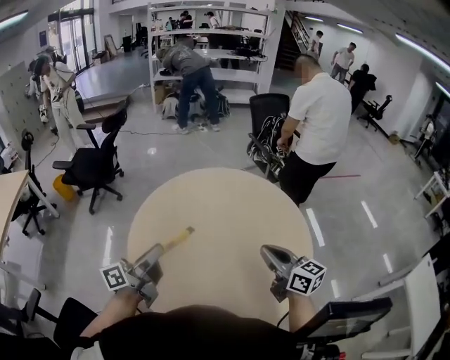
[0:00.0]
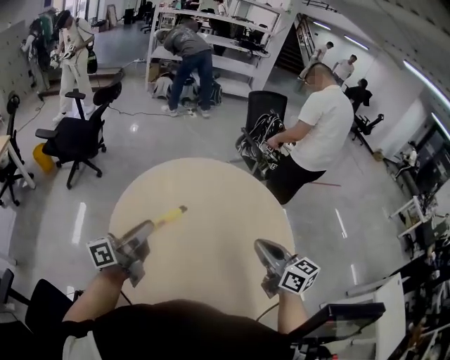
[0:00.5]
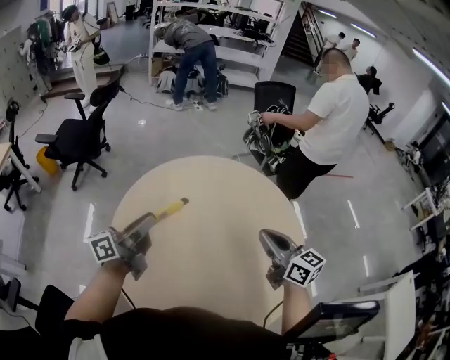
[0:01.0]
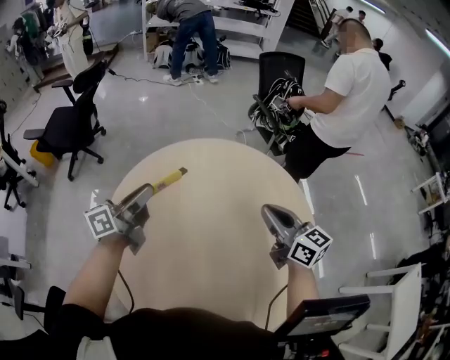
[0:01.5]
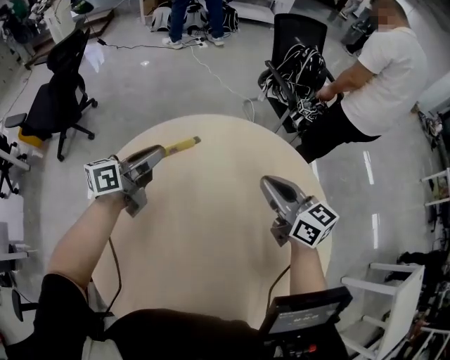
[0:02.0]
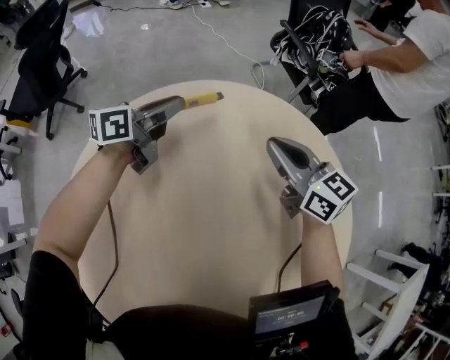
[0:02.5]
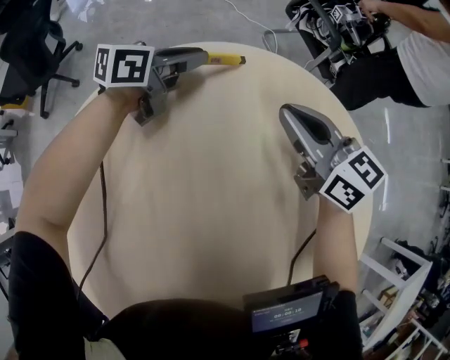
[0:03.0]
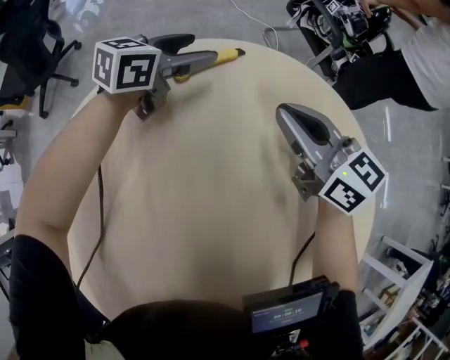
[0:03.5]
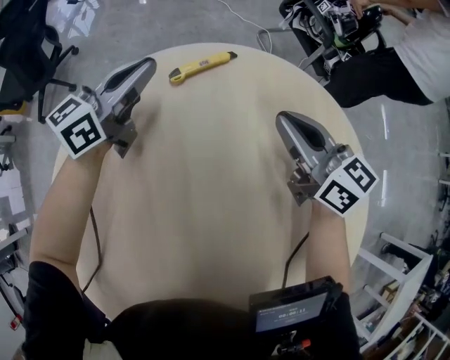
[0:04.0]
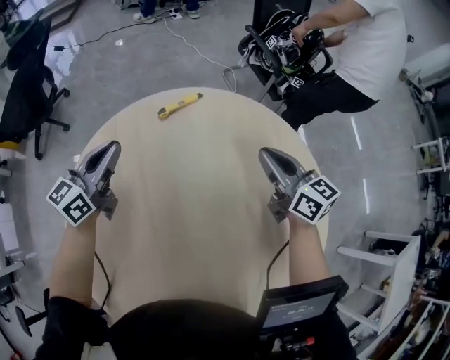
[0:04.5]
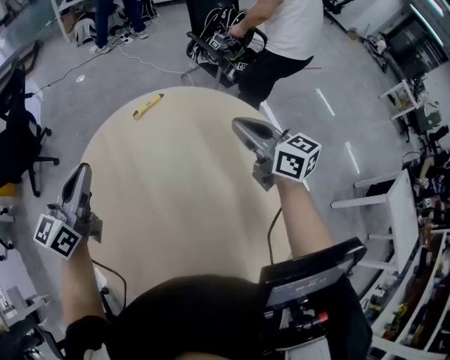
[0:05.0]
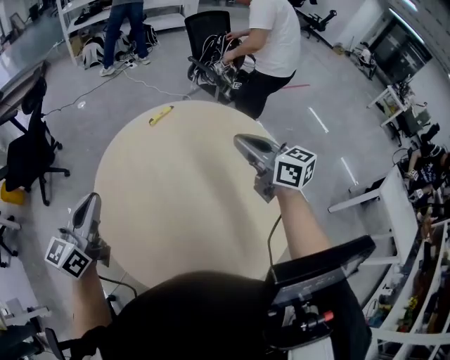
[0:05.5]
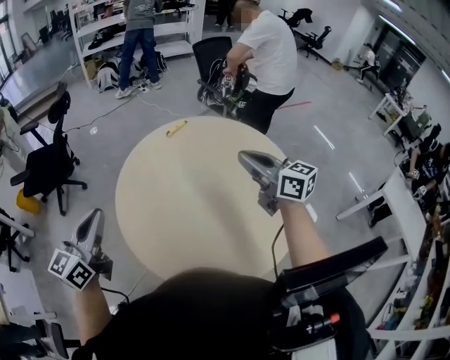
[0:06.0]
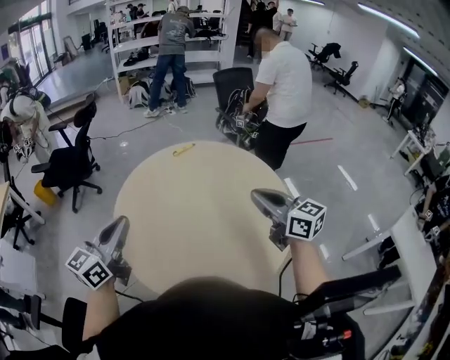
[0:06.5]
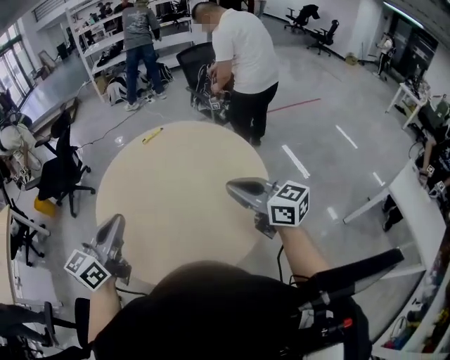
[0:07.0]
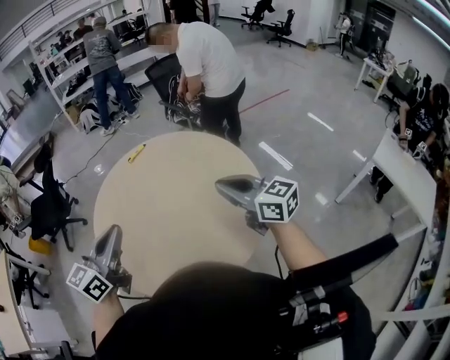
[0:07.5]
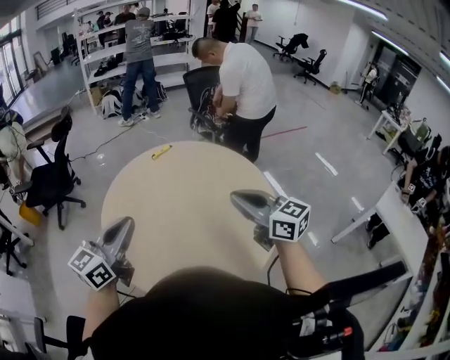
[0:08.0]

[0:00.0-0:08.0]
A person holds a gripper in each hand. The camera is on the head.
0:00.0 to 0:02.0: Both grippers travel together forward and downward, roughly 40 cm. The left gripper turns by roughly 20 degrees.
0:02.0 to 0:04.0: The left gripper goes roughly 15 cm forward and downward, changes its angle by roughly 20 degrees, and opens and closes again. The right gripper goes roughly 15 cm downward and forward.
0:04.0 to 0:06.0: Both grippers are carried backward, approximately 50 cm. The two grippers go some 35 cm upward.
0:06.0 to 0:08.0: The left gripper moves to the right and backward, roughly 20 cm. The right gripper goes roughly 15 cm backward and to the right.

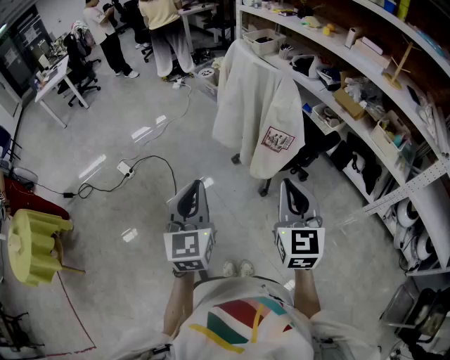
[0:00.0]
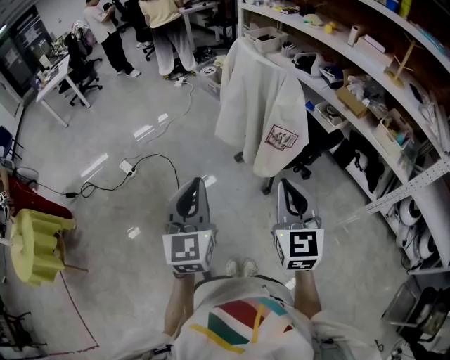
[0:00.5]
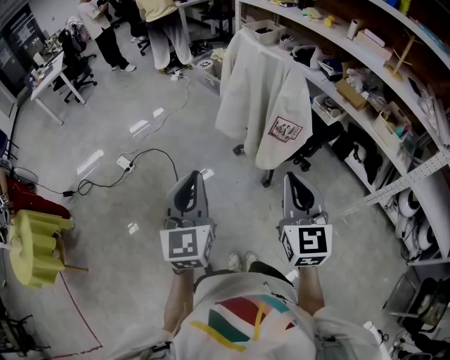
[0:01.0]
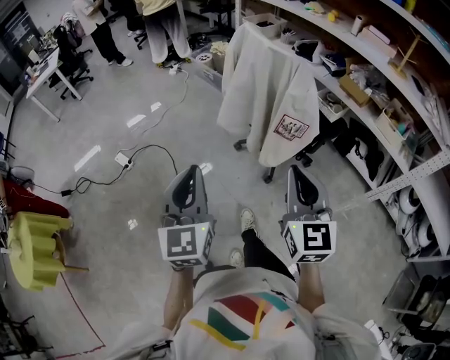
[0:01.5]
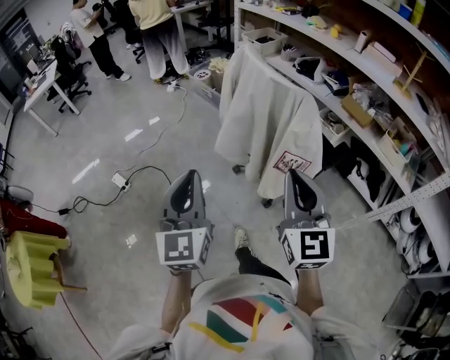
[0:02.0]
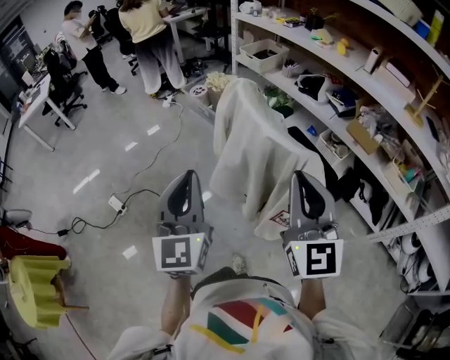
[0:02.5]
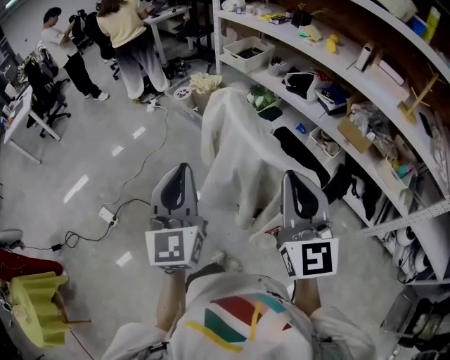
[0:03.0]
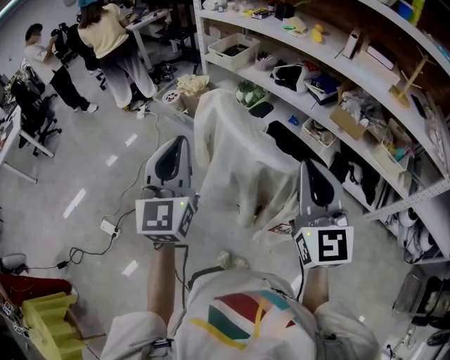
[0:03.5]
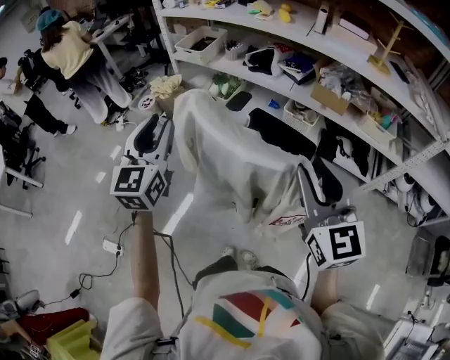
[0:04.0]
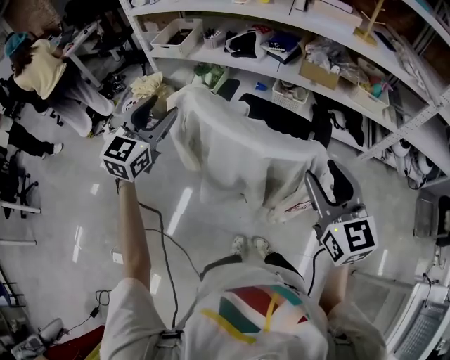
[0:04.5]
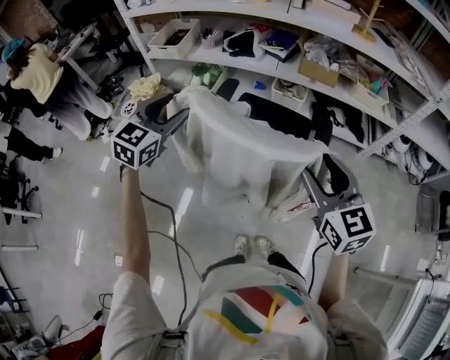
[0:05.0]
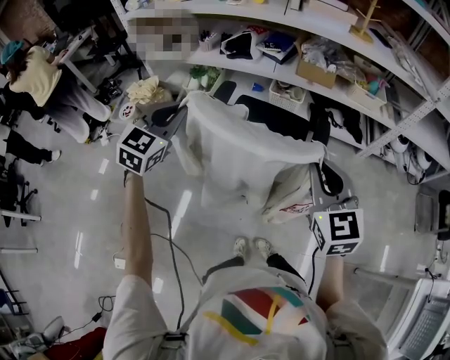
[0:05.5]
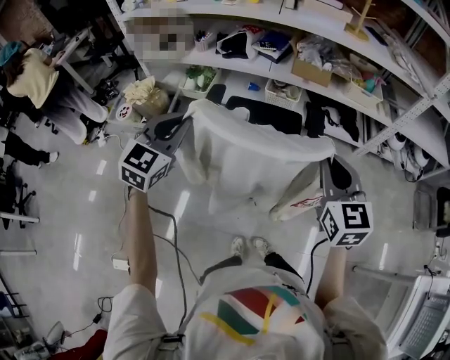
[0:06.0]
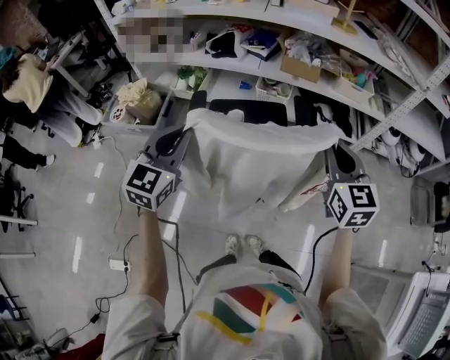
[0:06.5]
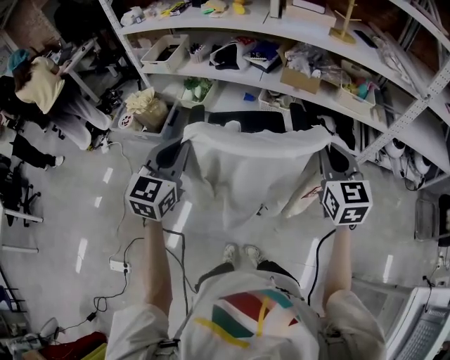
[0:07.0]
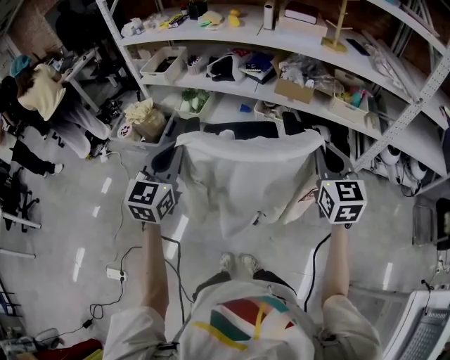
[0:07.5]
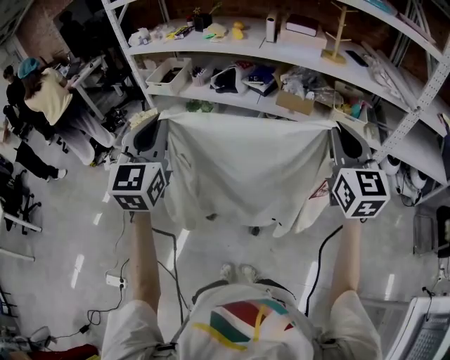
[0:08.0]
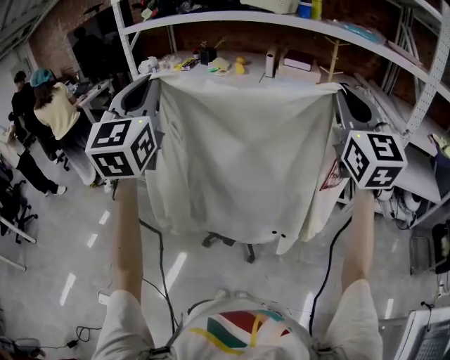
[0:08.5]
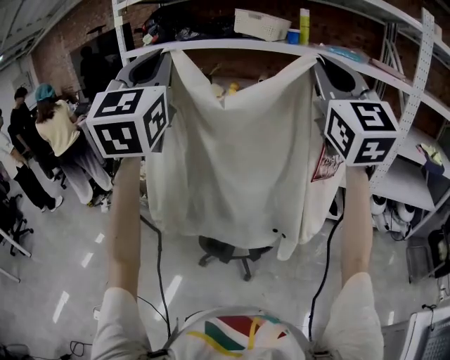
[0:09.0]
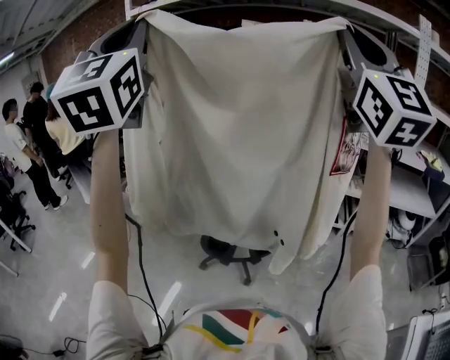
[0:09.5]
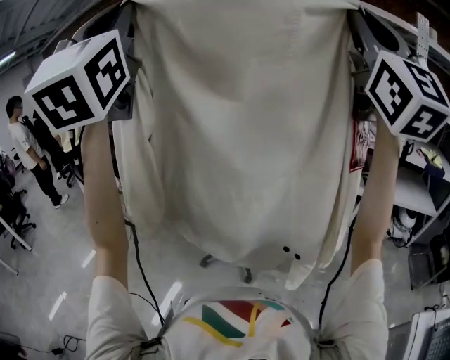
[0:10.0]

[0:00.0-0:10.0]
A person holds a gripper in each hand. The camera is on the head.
0:00.0 to 0:02.0: Both grippers move forward, some 15 cm.
0:02.0 to 0:04.0: The right gripper is displaced forward by some 20 cm, and opens; the left gripper moves forward, some 40 cm, rotates roughly 30 degrees, and opens its fingers.
0:04.0 to 0:06.0: The right gripper heads downward, covering about 5 cm, swivels roughly 20 degrees, and closes up; the left gripper ends up about 10 cm from where it was, changes its angle by about 40 degrees, and closes up.
0:06.0 to 0:08.0: The left gripper shifts approximately 15 cm upward and to the right, and changes its angle by about 30 degrees; the right gripper heads upward, to the right and forward, covering some 20 cm.
0:08.0 to 0:10.0: The grippers both shift upward and backward by approximately 40 cm. The left gripper tilts its fingers approximately 30 degrees upward, while the right gripper tilts its fingers roughly 40 degrees upward.

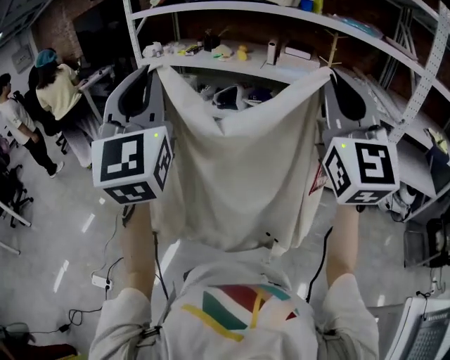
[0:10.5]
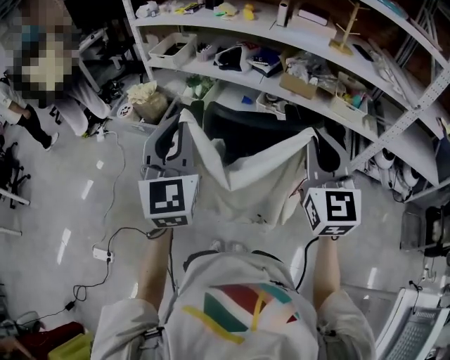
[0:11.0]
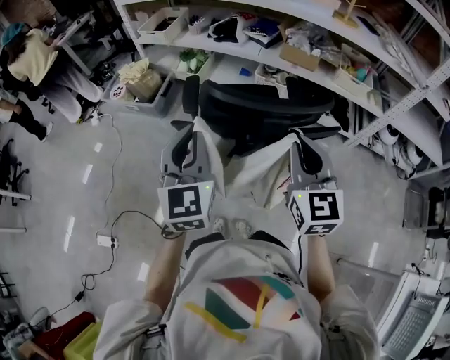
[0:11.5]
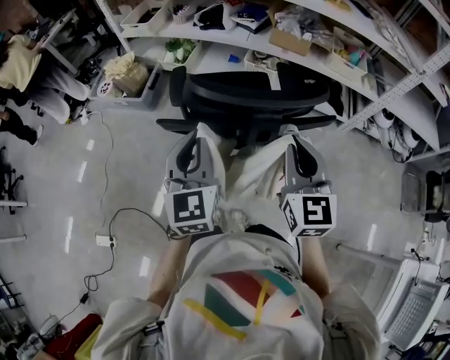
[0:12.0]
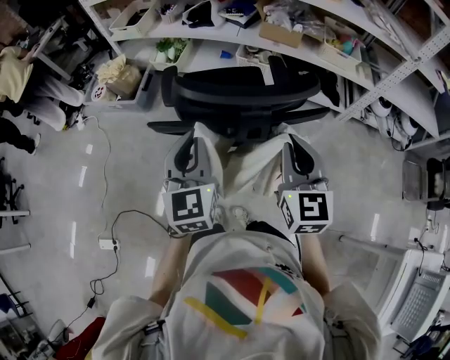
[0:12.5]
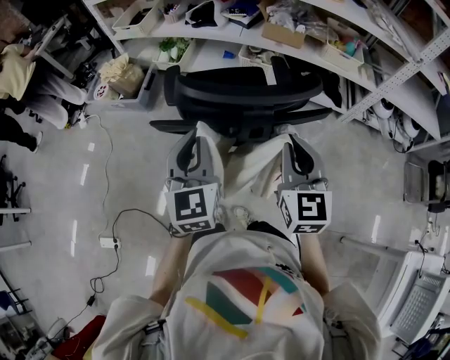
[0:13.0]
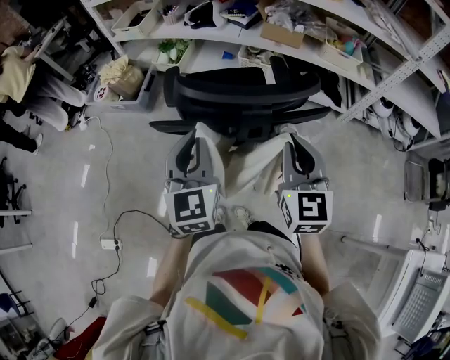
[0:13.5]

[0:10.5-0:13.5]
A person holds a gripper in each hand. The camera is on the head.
0:10.5 to 0:12.0: The two grippers go about 35 cm downward. The right gripper angles its fingers downward, by approximately 30 degrees; the left gripper changes its angle by about 30 degrees.
0:12.0 to 0:13.5: There are only small adjustments of the grippers.

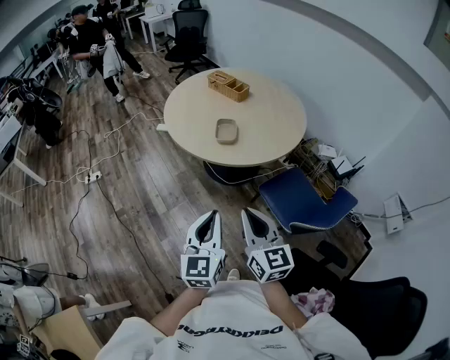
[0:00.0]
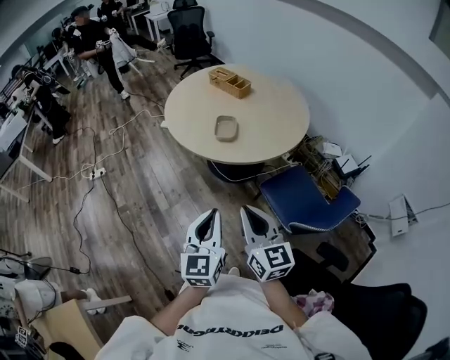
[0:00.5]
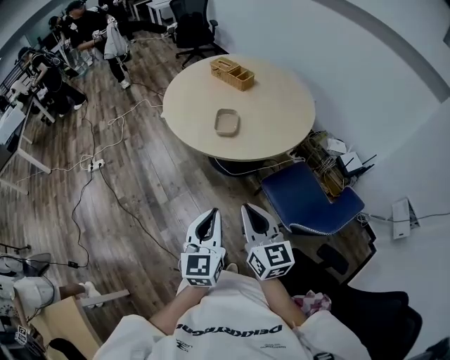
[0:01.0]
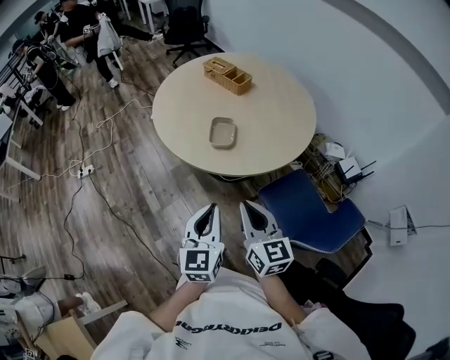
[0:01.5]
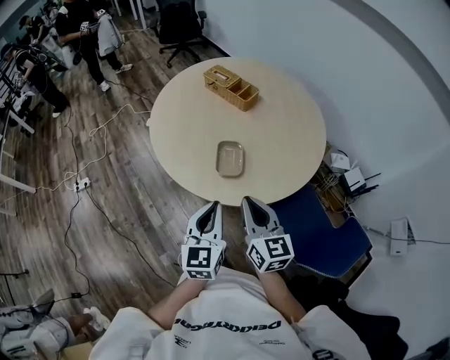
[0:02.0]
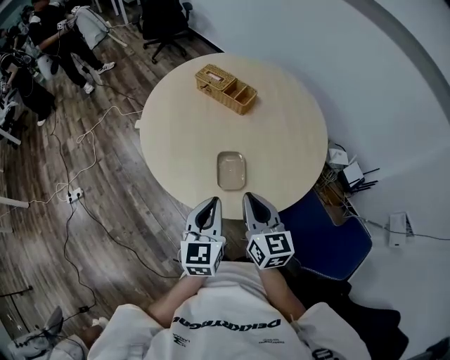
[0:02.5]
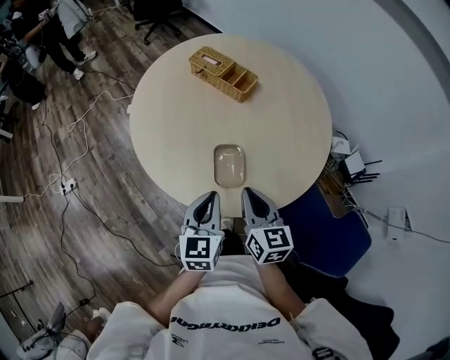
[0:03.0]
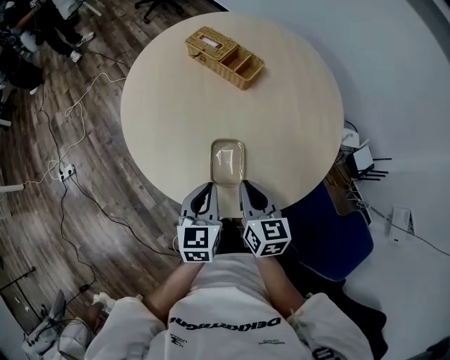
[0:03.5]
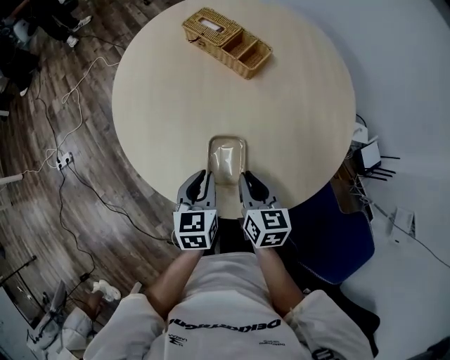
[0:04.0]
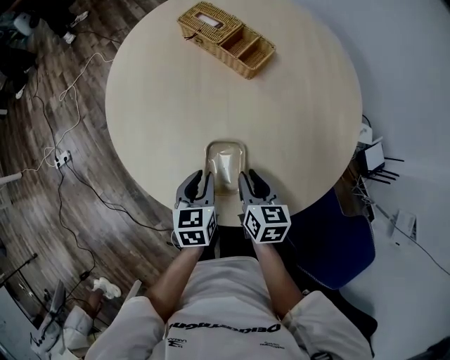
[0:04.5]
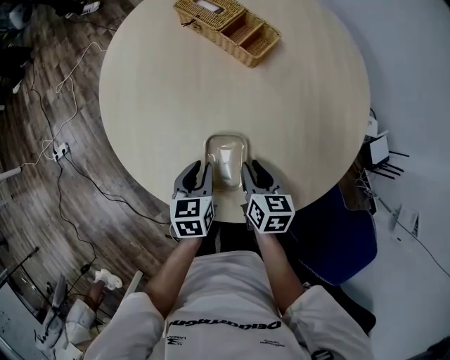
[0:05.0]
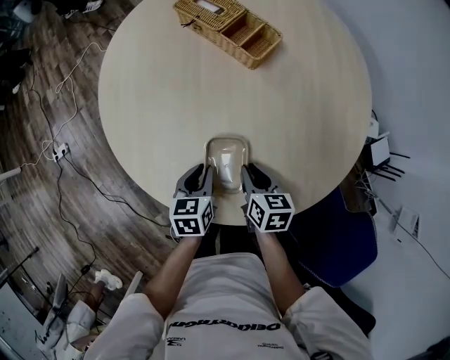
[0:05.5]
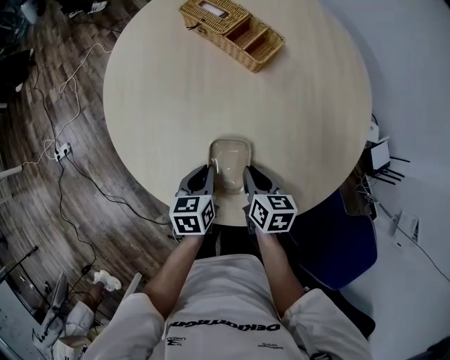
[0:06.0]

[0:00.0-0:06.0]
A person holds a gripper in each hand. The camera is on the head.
0:00.0 to 0:02.0: Both grippers move forward, about 35 cm.
0:02.0 to 0:04.0: The grippers both shift forward and downward by approximately 30 cm. The left gripper swivels some 30 degrees. Meanwhile the right gripper changes its angle by about 30 degrees.
0:04.0 to 0:06.0: Both grippers travel together downward, roughly 10 cm.
